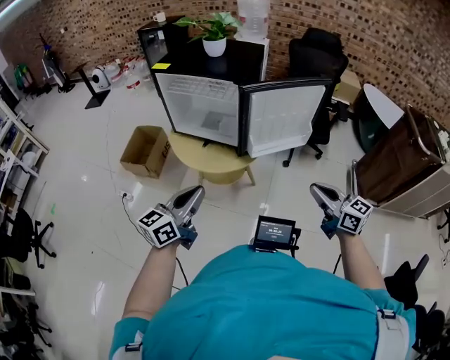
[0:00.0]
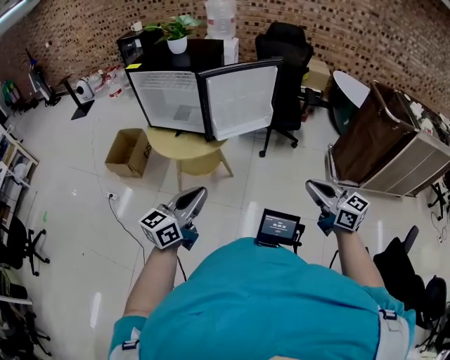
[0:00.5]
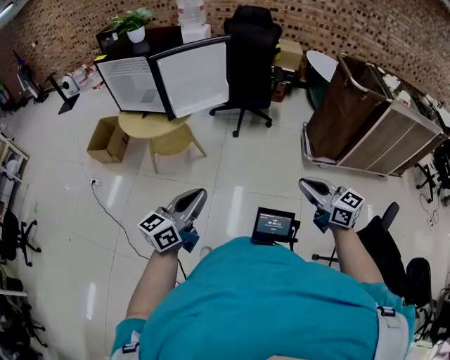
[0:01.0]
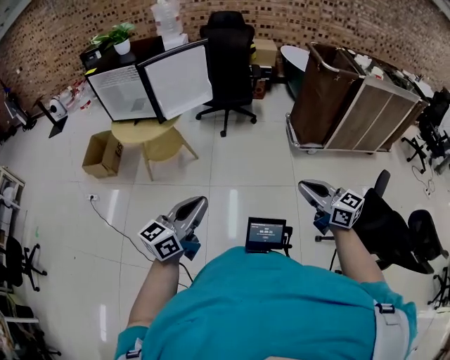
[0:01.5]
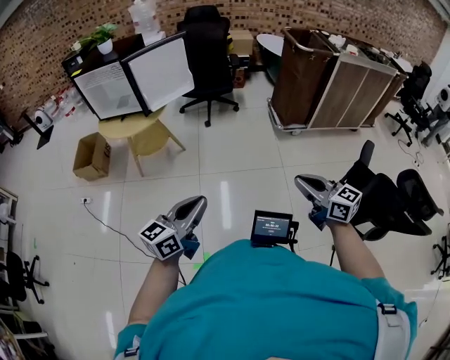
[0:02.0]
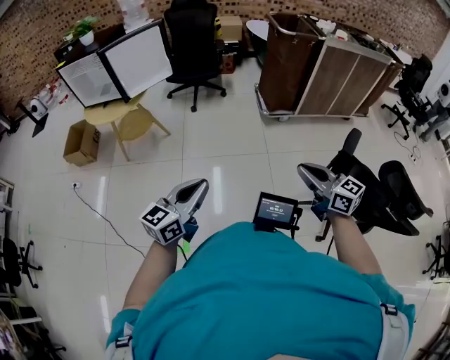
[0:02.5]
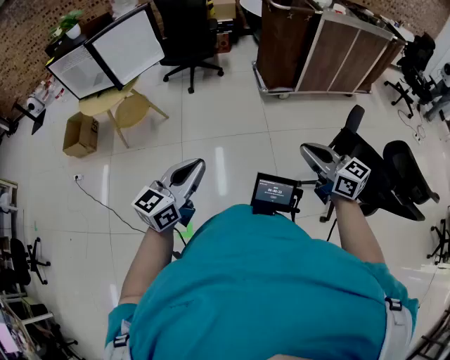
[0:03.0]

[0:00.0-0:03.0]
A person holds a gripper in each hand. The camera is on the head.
0:00.0 to 0:01.5: Both grippers are carried backward and to the right, roughly 50 cm.
0:01.5 to 0:03.0: The grippers both shift to the right and backward by about 20 cm.

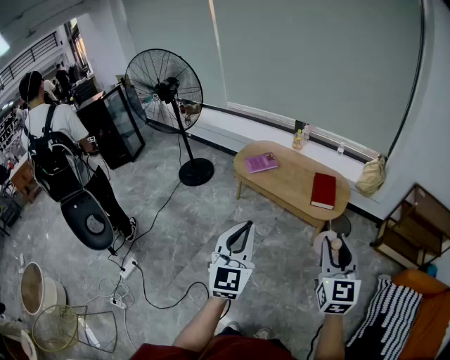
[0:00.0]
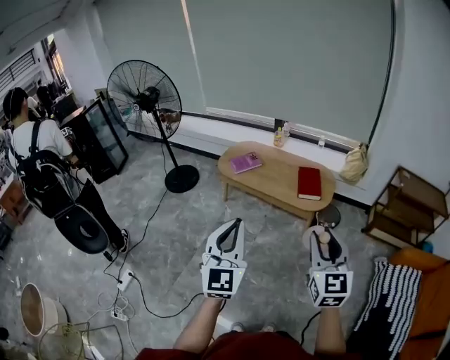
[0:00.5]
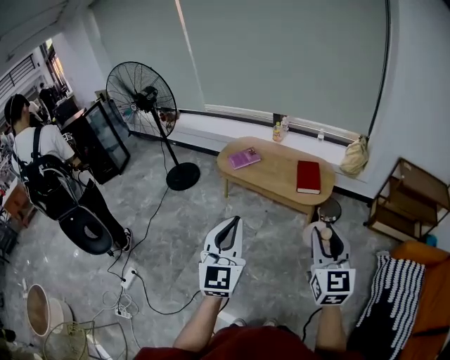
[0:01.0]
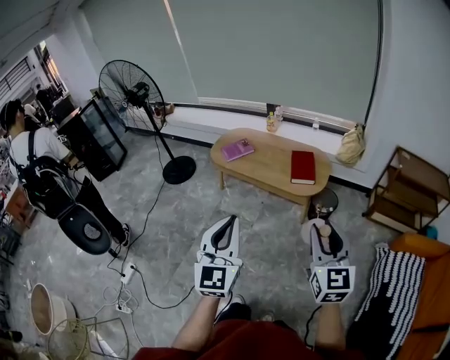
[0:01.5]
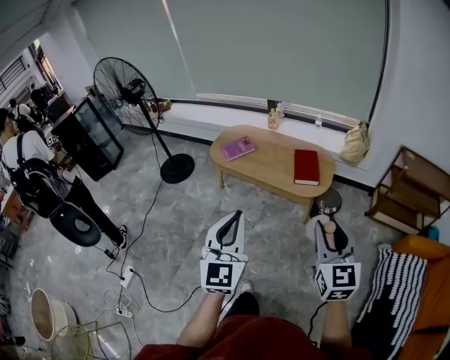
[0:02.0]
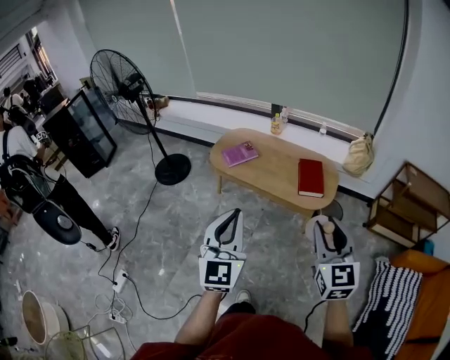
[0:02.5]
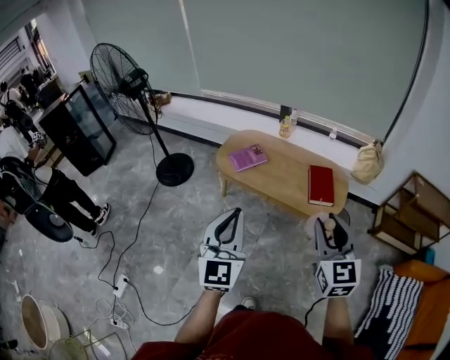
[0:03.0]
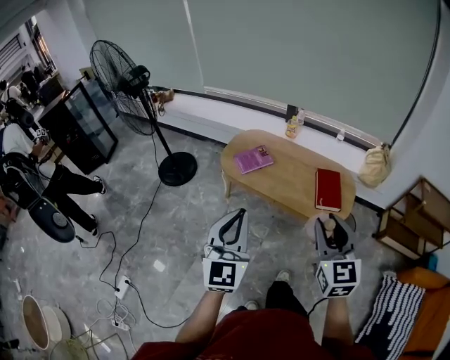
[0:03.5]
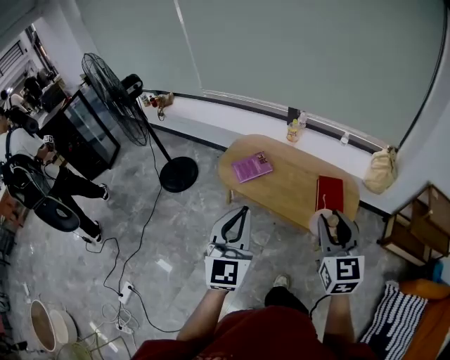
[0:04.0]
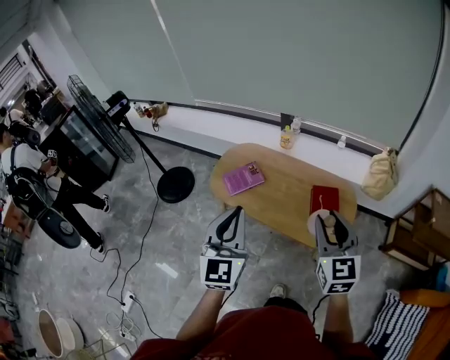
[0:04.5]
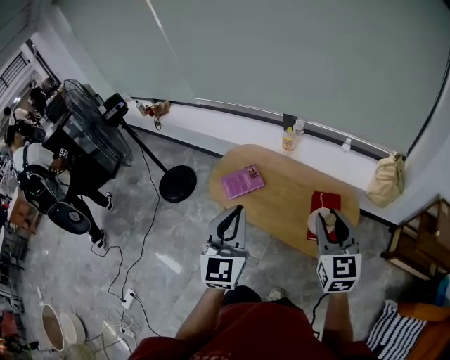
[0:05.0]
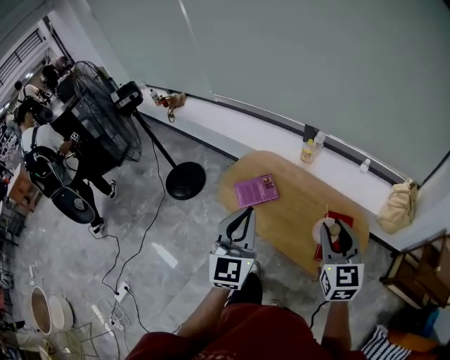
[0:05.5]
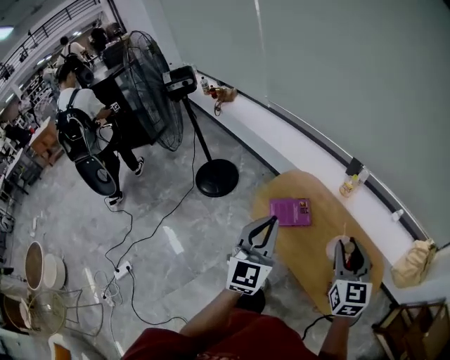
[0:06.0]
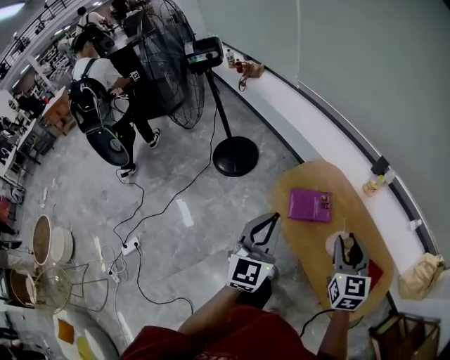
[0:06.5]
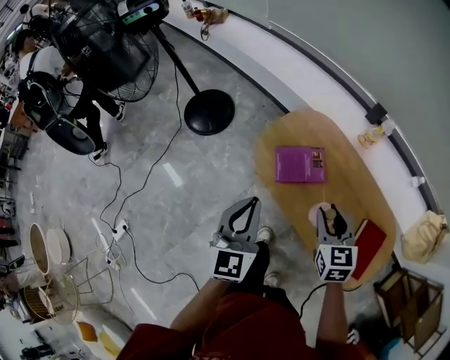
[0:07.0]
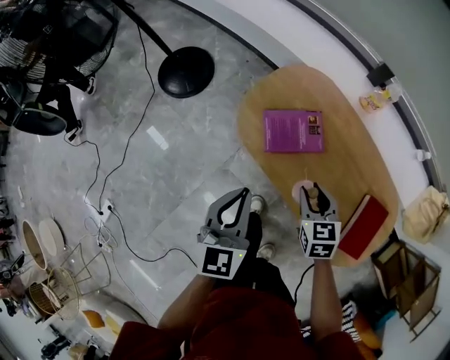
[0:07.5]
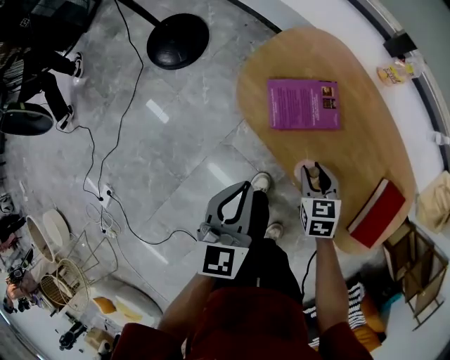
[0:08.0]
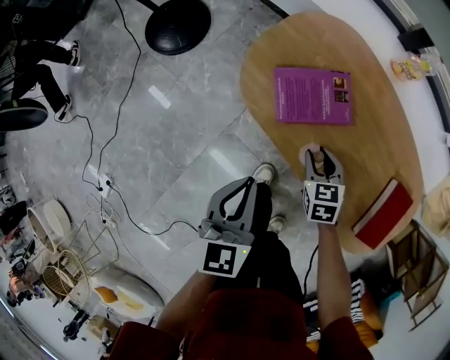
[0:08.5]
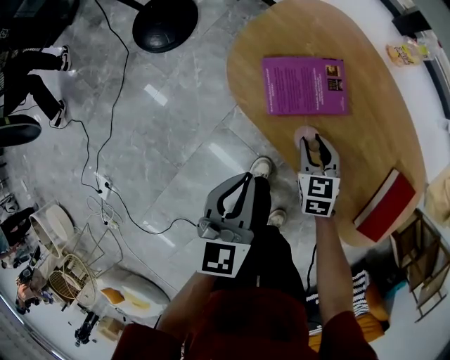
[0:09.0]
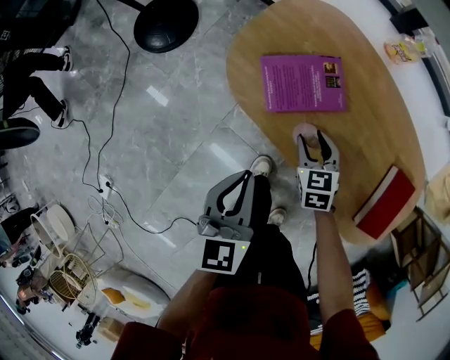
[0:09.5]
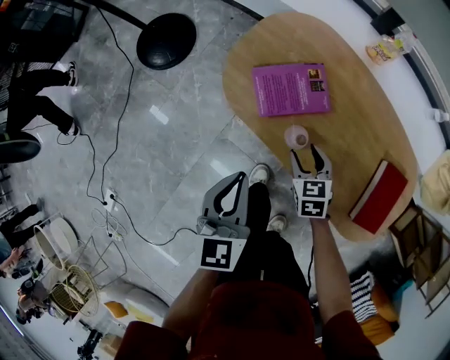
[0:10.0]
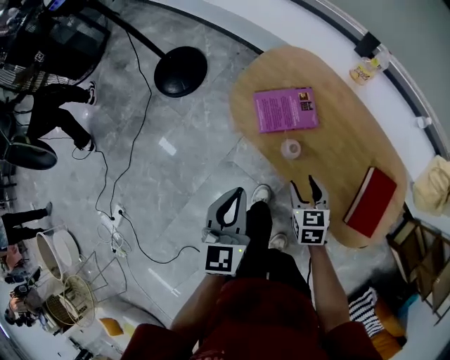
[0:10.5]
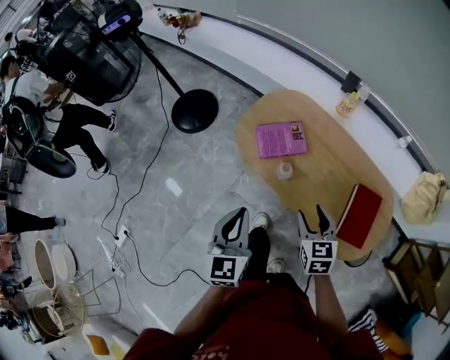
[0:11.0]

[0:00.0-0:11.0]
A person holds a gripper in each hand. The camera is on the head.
0:00.0 to 0:02.0: The left gripper heads to the right, covering about 5 cm.
0:02.0 to 0:03.5: The two grippers go about 30 cm forward and to the left.
0:03.5 to 0:05.5: The grippers both shift forward by some 35 cm.
0:05.5 to 0:07.5: The grippers both shift downward, forward and to the left by some 40 cm. The right gripper angles its fingers downward, by about 30 degrees, while the left gripper rotates about 20 degrees.
0:07.5 to 0:09.0: The two grippers go approximately 15 cm downward.
0:09.0 to 0:11.0: Both grippers move upward and backward, roughly 30 cm. The right gripper opens.

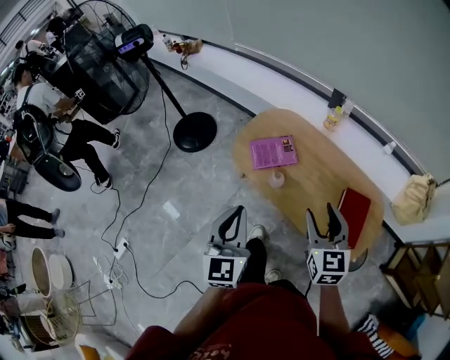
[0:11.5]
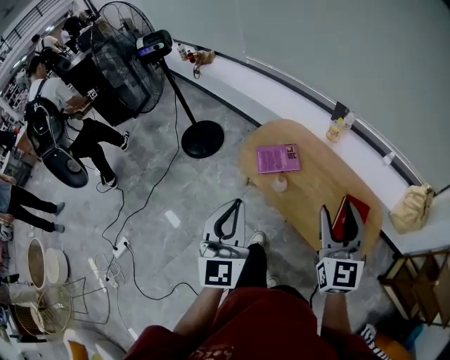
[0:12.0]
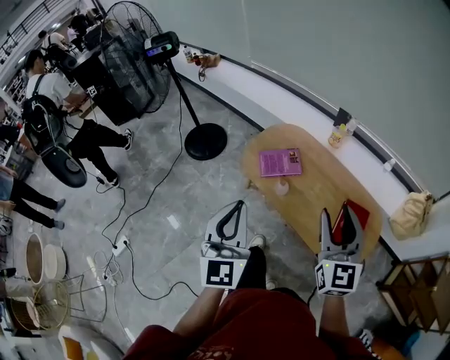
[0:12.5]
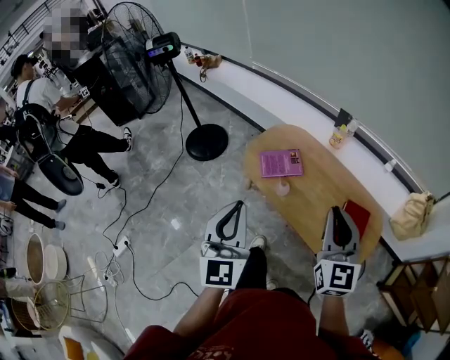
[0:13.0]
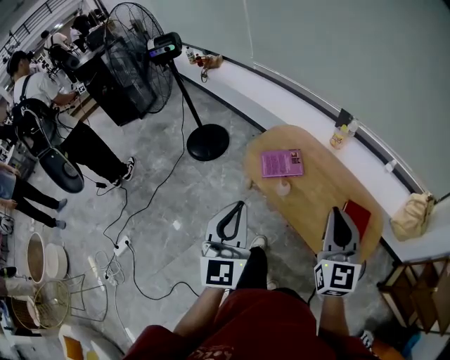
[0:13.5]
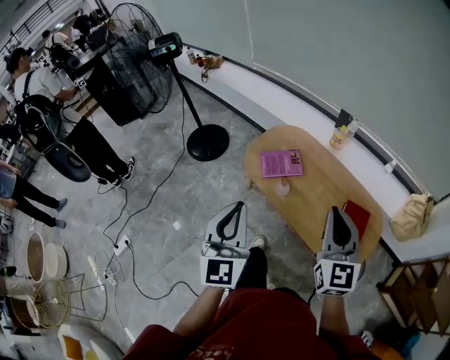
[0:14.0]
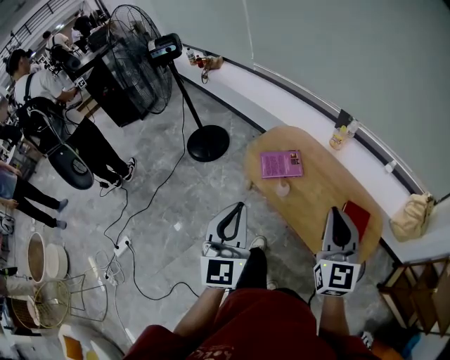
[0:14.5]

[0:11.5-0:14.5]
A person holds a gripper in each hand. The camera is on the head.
0:11.5 to 0:13.0: The grippers both shift upward and backward by roughly 10 cm. The right gripper closes.
0:13.0 to 0:14.5: Both grippers stay about where they are.

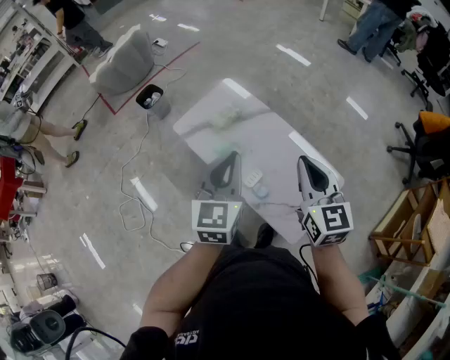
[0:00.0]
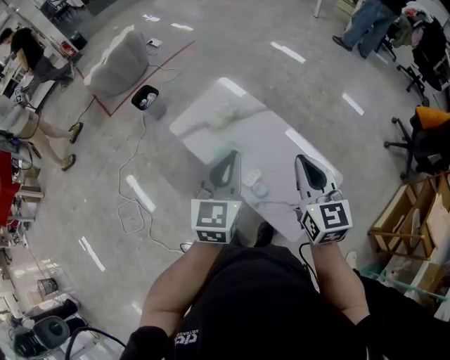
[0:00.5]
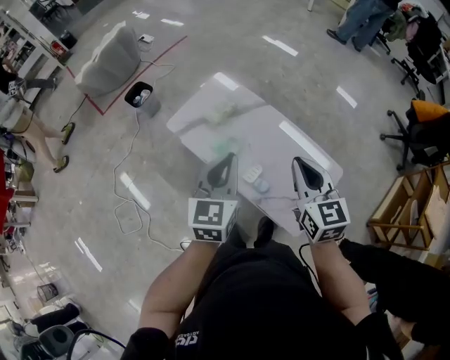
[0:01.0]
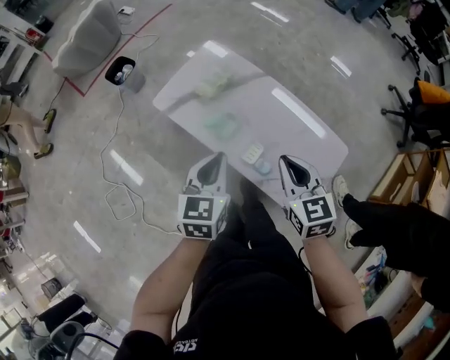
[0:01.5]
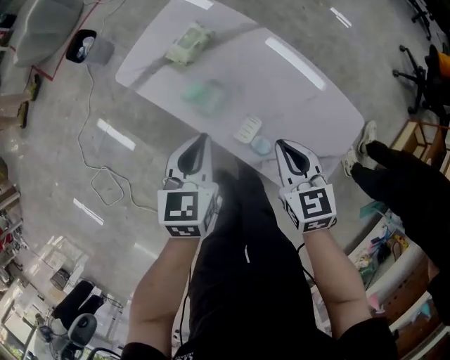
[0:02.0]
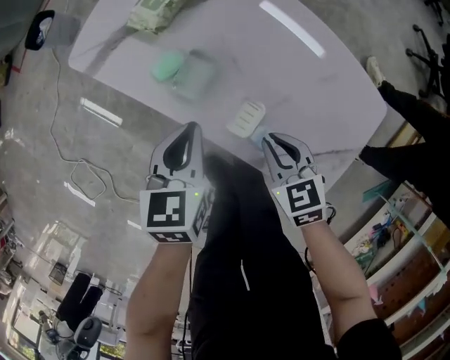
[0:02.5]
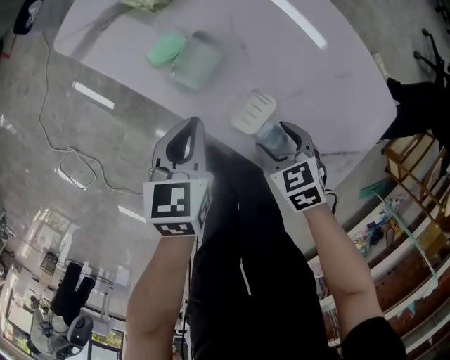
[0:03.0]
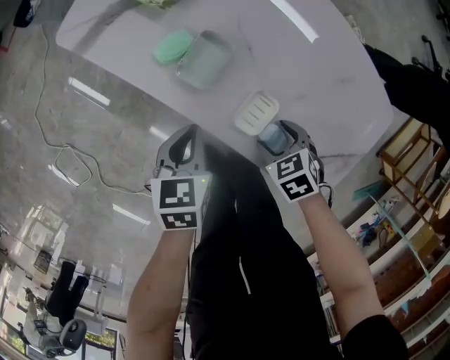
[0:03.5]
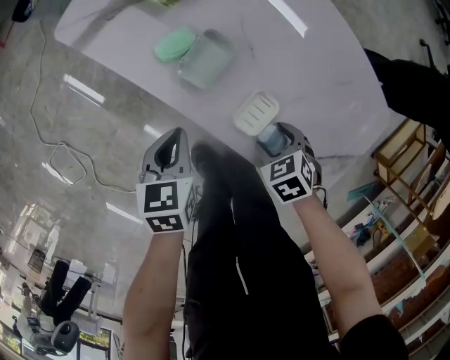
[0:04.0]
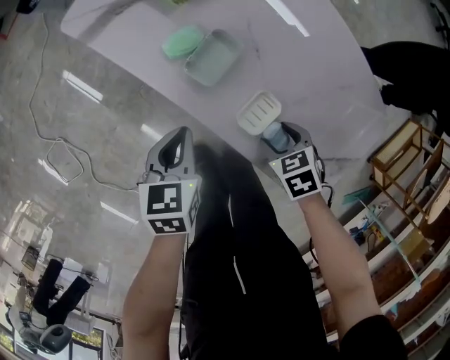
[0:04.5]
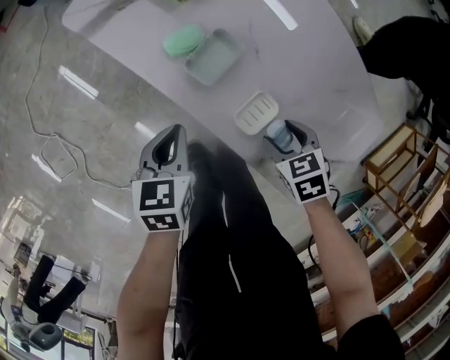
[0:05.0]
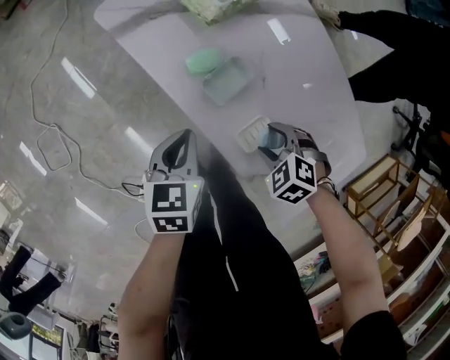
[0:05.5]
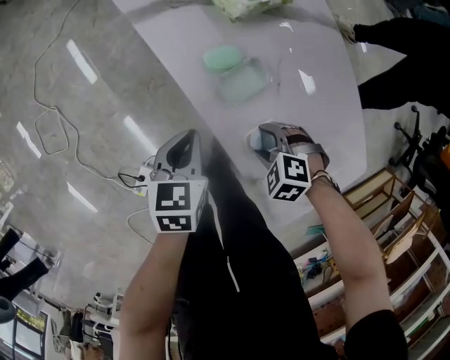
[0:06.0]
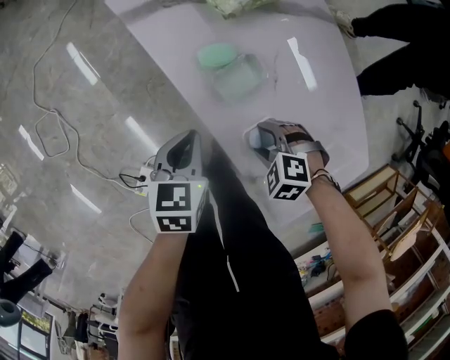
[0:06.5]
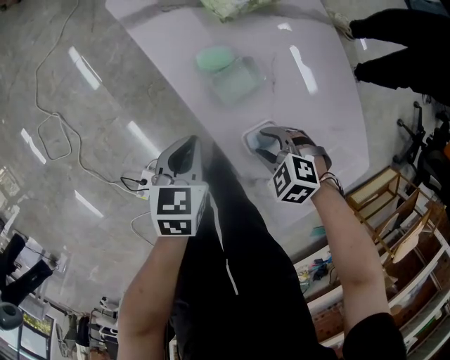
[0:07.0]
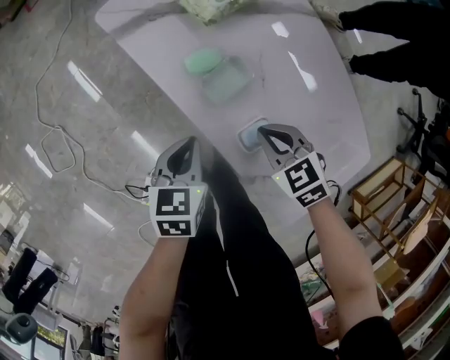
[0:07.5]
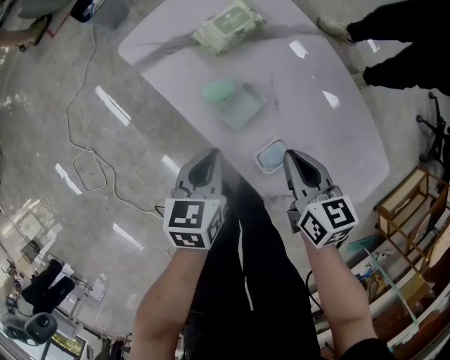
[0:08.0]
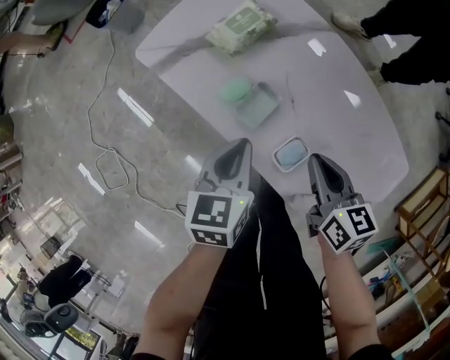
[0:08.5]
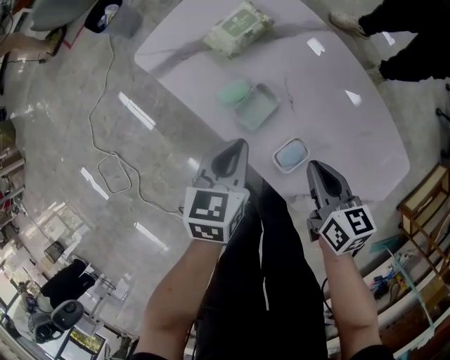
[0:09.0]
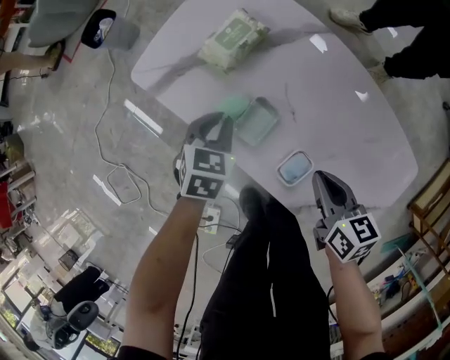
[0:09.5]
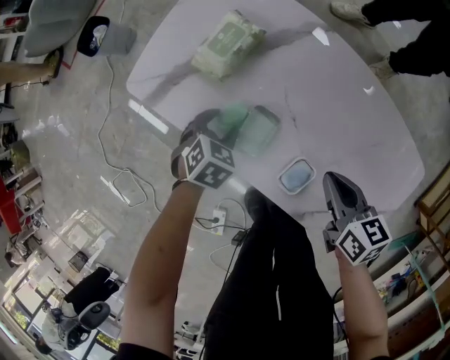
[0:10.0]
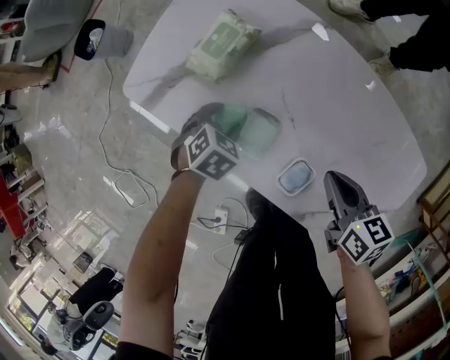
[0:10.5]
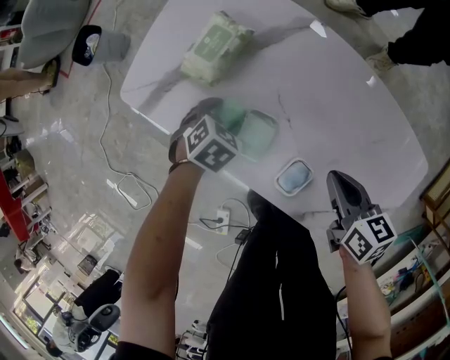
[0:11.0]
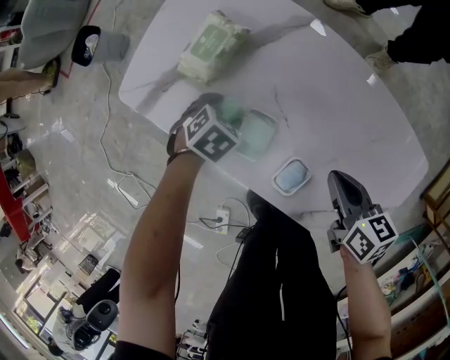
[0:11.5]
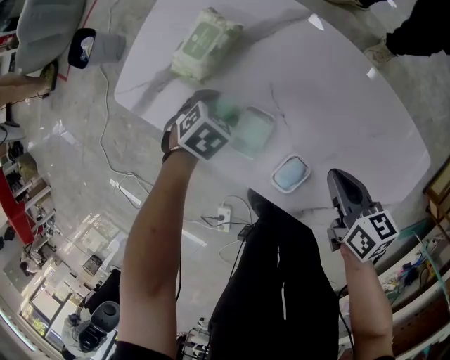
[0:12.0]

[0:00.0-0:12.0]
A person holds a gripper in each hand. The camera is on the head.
0:00.0 to 0:02.0: The two grippers go some 30 cm downward. The left gripper turns by roughly 30 degrees; the right gripper swivels approximately 30 degrees.
0:02.0 to 0:04.0: Both grippers move downward, some 30 cm. The right gripper tilts its fingers some 40 degrees downward, and opens. The left gripper rotates approximately 20 degrees.
0:04.0 to 0:06.0: The right gripper moves approximately 10 cm, and rotates around the line of its fingers by roughly 60 degrees, counterclockwise from behind.
0:06.0 to 0:08.0: The left gripper shifts by some 5 cm. Meanwhile the right gripper moves upward, roughly 15 cm, rolls clockwise, seen from behind, by some 70 degrees, and closes its fingers.
0:08.0 to 0:10.0: The left gripper moves downward and forward, some 15 cm, rolls clockwise, seen from behind, by approximately 50 degrees, and opens up. The right gripper heads to the right, covering roughly 5 cm.
0:10.0 to 0:12.0: The left gripper ends up approximately 5 cm from where it was.
